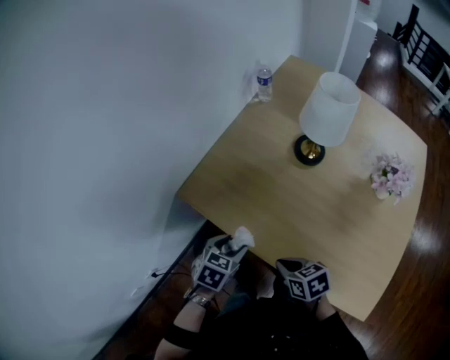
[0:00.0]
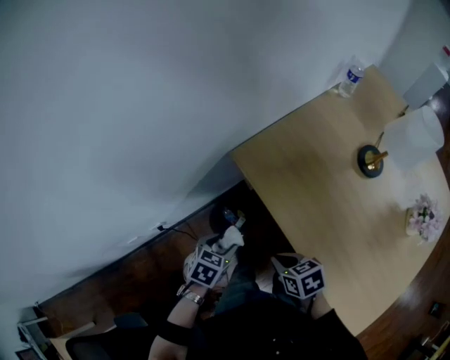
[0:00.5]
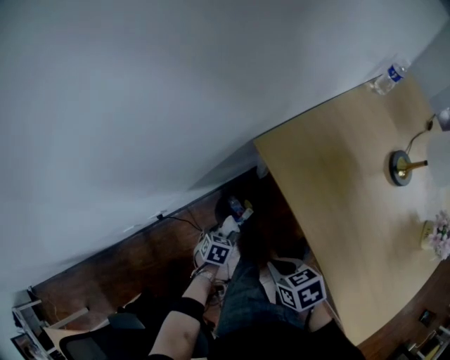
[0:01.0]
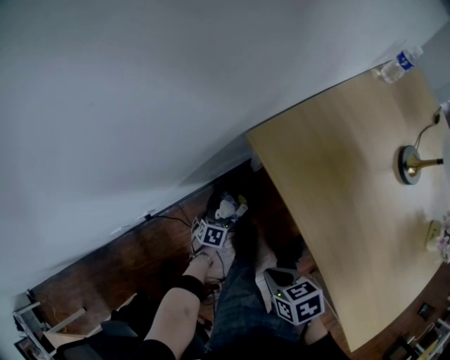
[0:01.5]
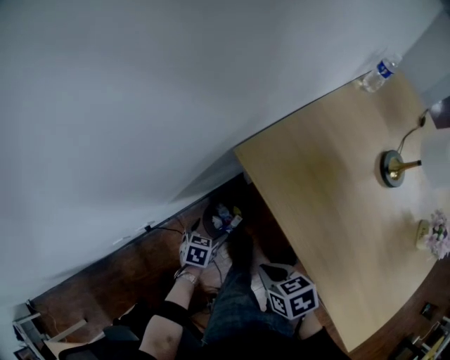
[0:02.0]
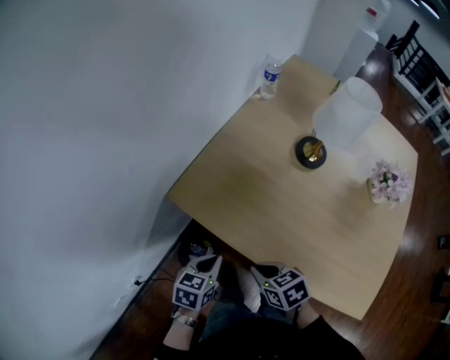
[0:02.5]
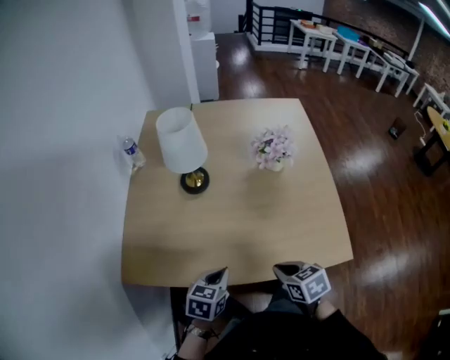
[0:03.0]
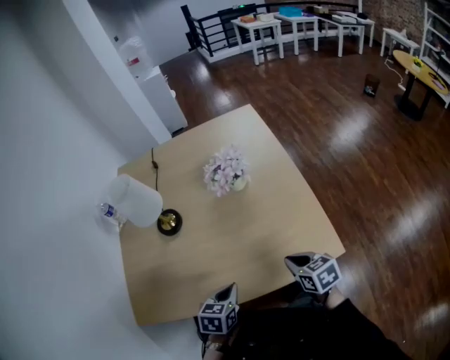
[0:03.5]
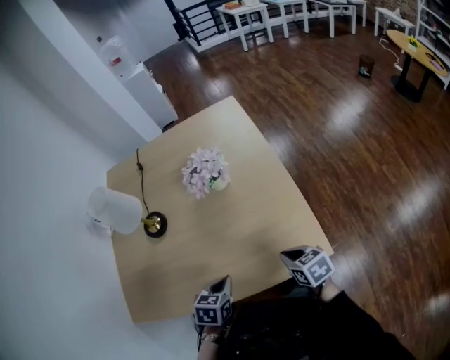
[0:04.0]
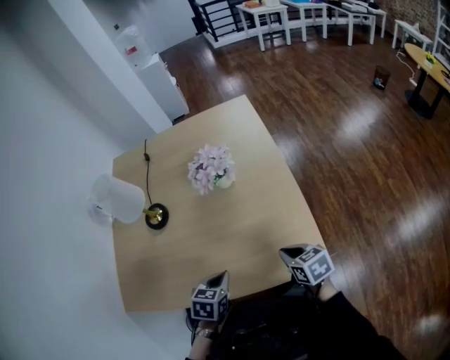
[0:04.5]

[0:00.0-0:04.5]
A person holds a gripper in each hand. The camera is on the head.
0:00.0 to 0:02.0: The left gripper heads downward, covering approximately 25 cm, turns by approximately 40 degrees, and opens its fingers. Meanwhile the right gripper ends up about 20 cm from where it was, and rotates about 20 degrees.
0:02.0 to 0:04.5: The pair of grippers is taken roughly 60 cm. The left gripper rotates around the line of its fingers by some 60 degrees, clockwise from behind, and closes up. The right gripper turns by about 70 degrees.

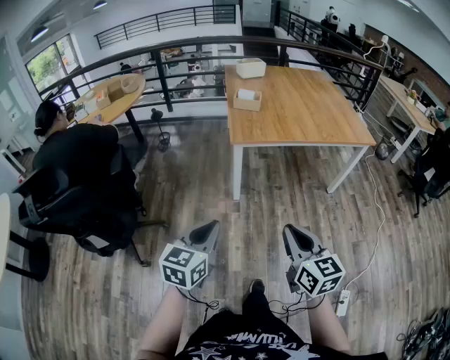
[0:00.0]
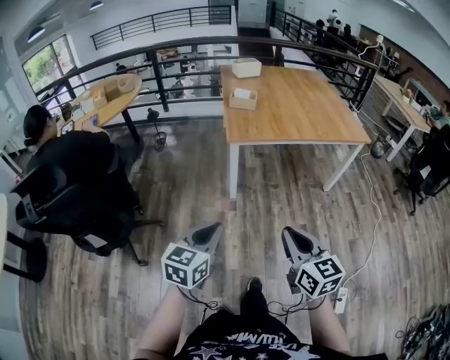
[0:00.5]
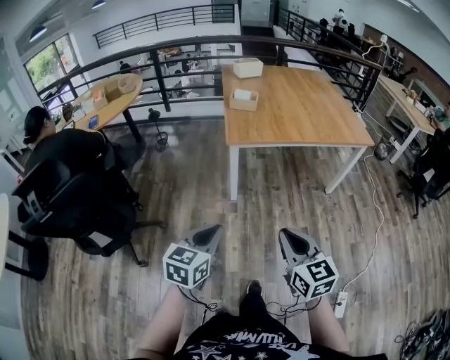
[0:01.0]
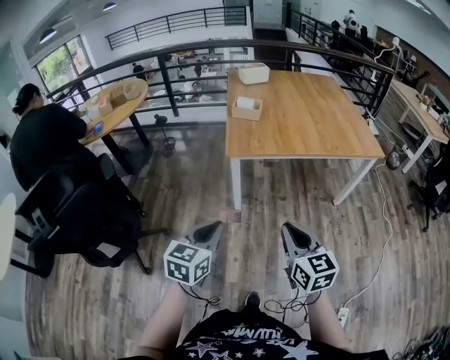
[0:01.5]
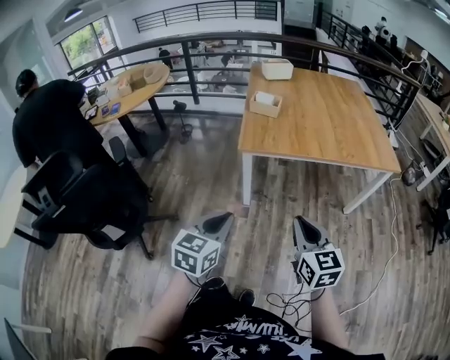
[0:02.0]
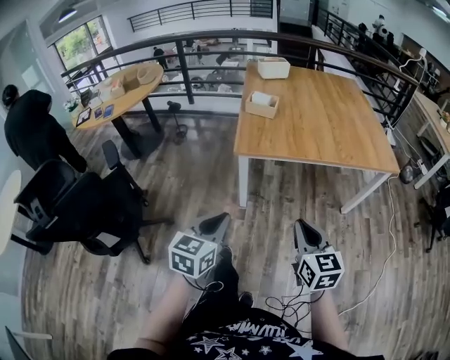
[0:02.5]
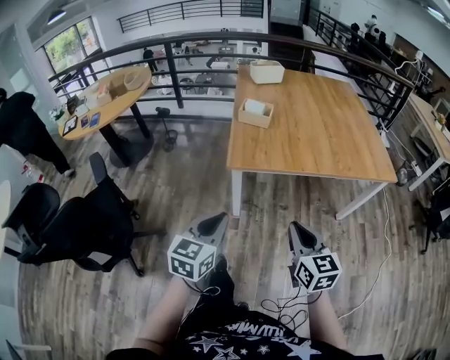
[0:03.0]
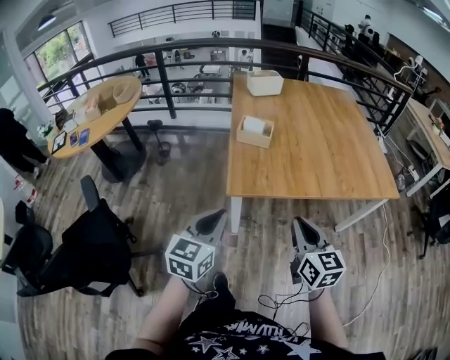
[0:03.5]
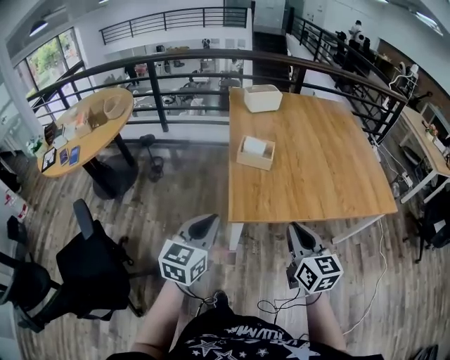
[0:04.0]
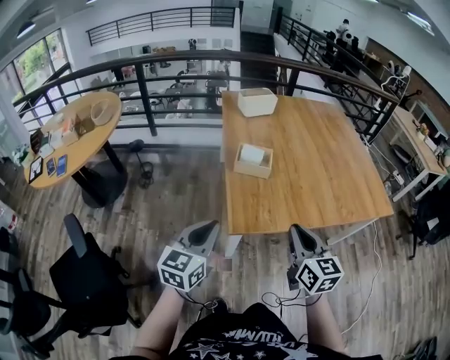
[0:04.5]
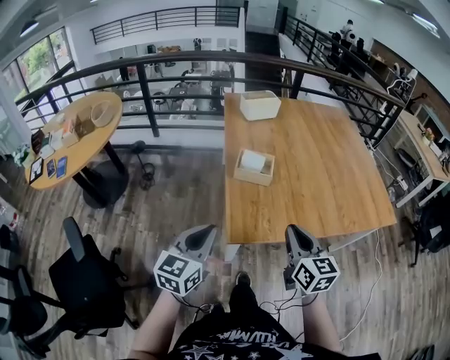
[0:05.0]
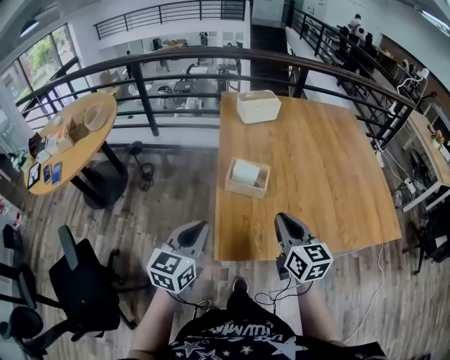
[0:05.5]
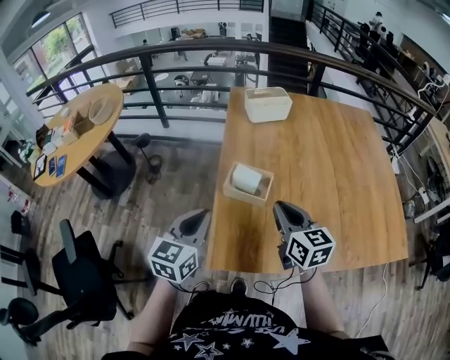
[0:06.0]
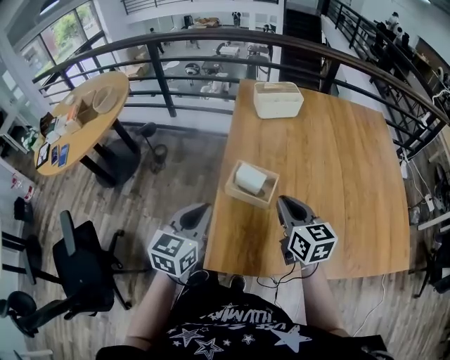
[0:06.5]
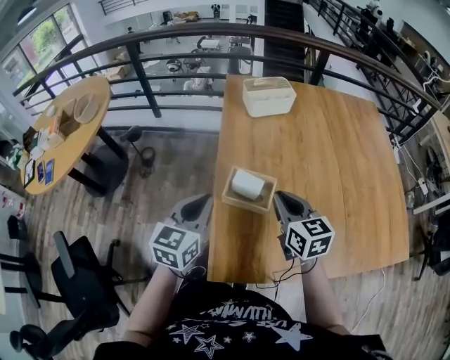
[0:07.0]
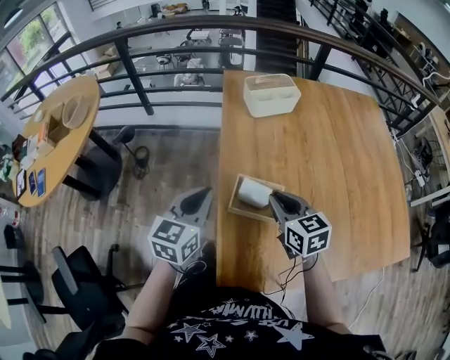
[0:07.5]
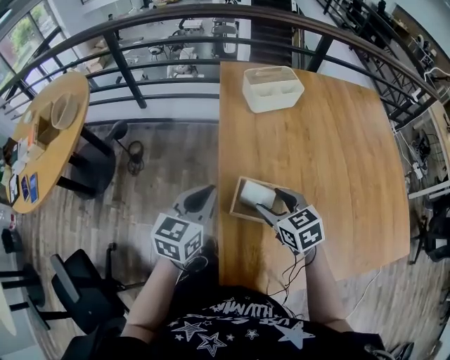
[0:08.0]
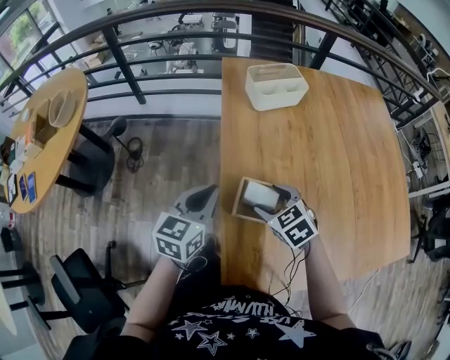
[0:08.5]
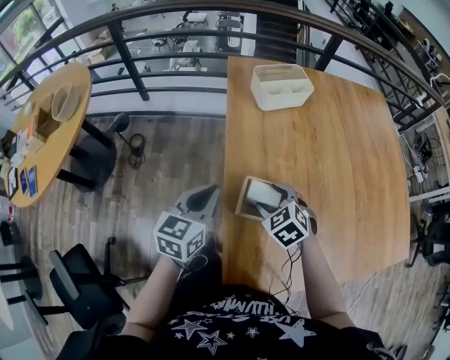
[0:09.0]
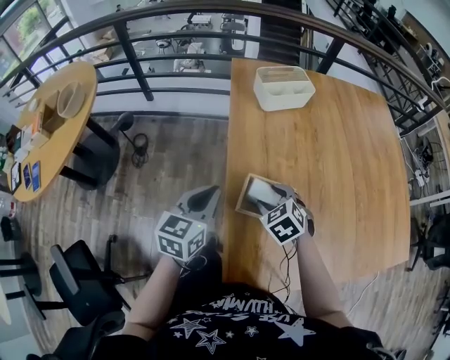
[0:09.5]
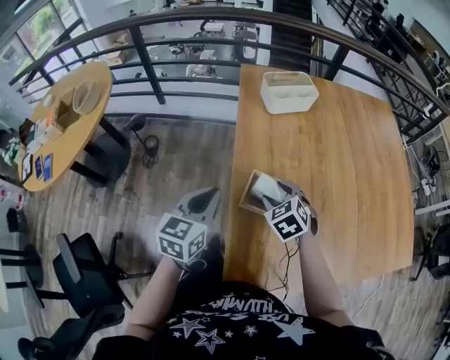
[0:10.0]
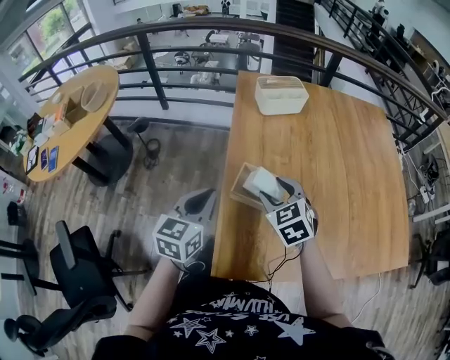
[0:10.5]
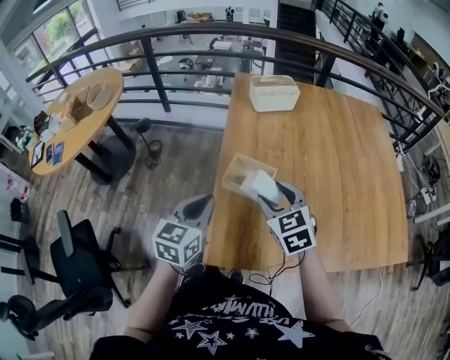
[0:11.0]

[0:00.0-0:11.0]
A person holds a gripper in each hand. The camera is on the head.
0:00.0 to 0:02.0: Both grippers travel together forward and to the right, approximately 20 cm.
0:02.0 to 0:03.5: The two grippers go about 25 cm forward.
0:03.5 to 0:05.5: The two grippers go roughly 30 cm forward.
0:05.5 to 0:07.5: The two grippers go approximately 25 cm forward.
0:07.5 to 0:09.0: The left gripper moves about 5 cm, while the right gripper moves downward, roughly 10 cm, turns by roughly 40 degrees, and opens its fingers.
0:09.0 to 0:11.0: The left gripper travels backward by some 20 cm. The right gripper moves backward, upward and to the right, some 20 cm, and rotates approximately 20 degrees.

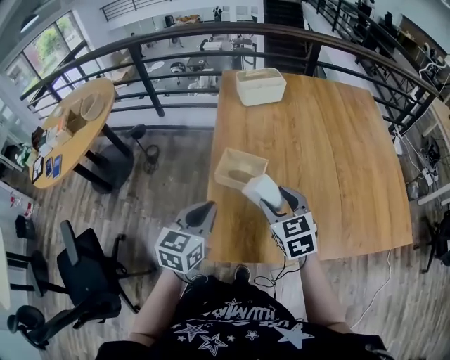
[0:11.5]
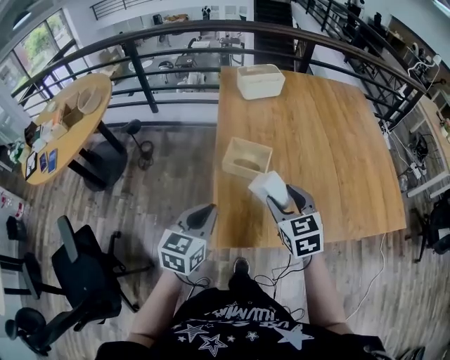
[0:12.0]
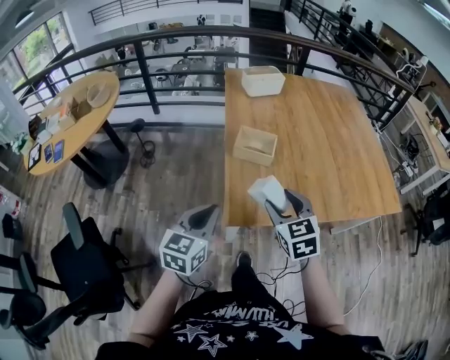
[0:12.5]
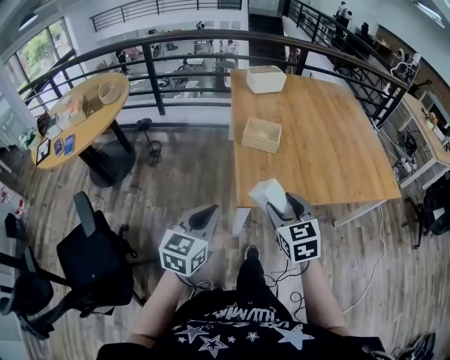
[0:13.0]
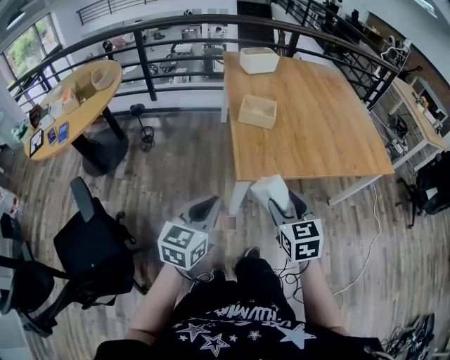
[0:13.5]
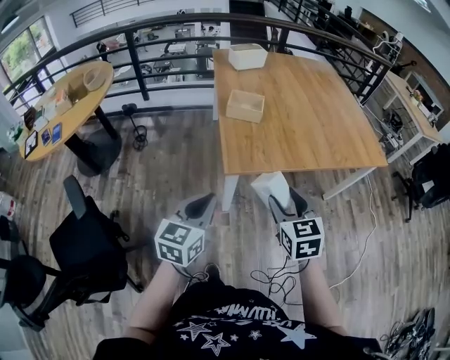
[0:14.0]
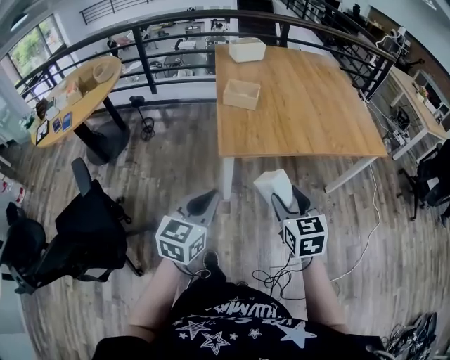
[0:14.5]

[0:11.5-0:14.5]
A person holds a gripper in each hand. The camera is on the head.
0:11.5 to 0:13.0: The right gripper shifts approximately 30 cm backward. Meanwhile the left gripper goes approximately 35 cm backward and to the left.
0:13.0 to 0:14.5: The two grippers go roughly 20 cm backward and to the right.

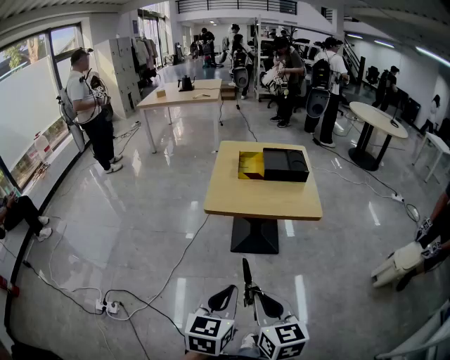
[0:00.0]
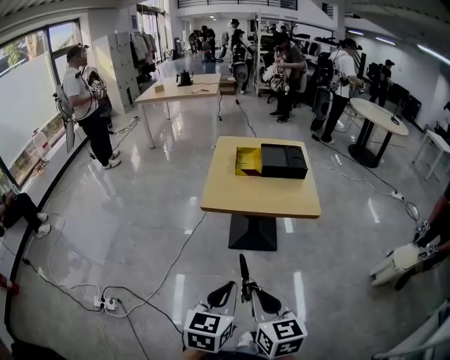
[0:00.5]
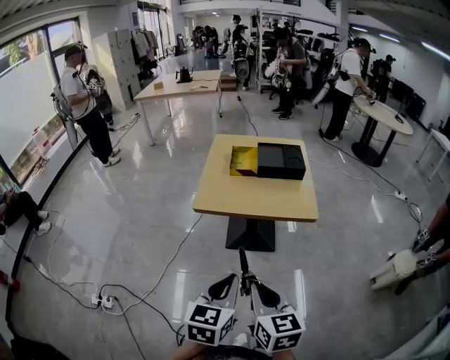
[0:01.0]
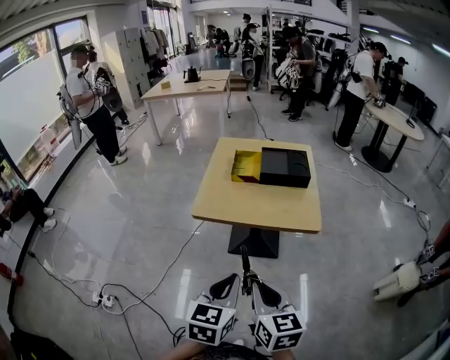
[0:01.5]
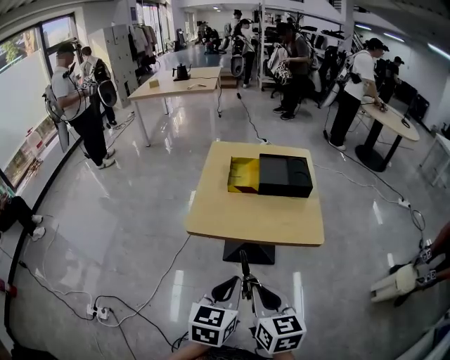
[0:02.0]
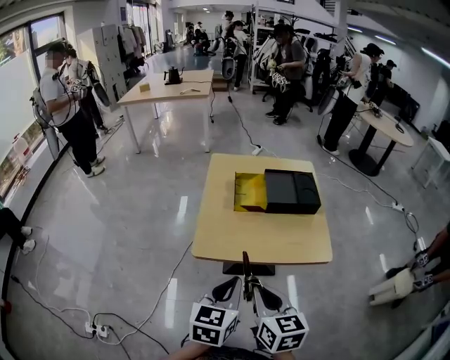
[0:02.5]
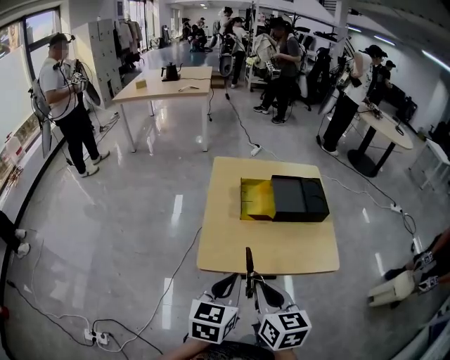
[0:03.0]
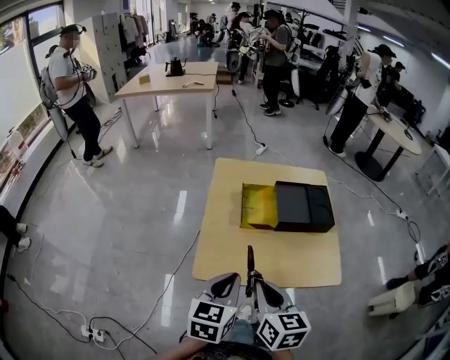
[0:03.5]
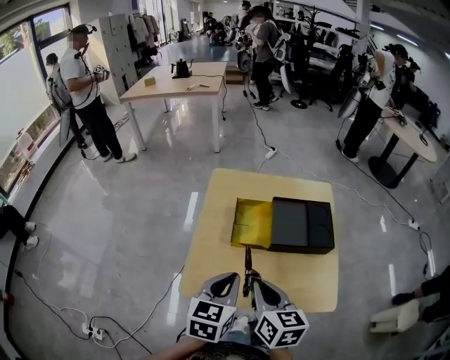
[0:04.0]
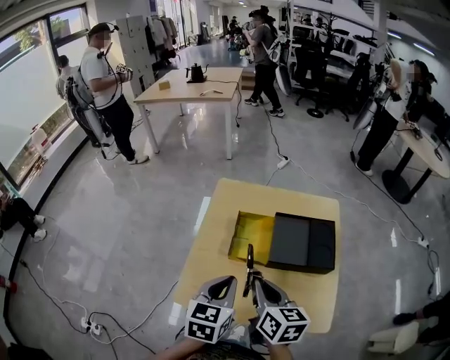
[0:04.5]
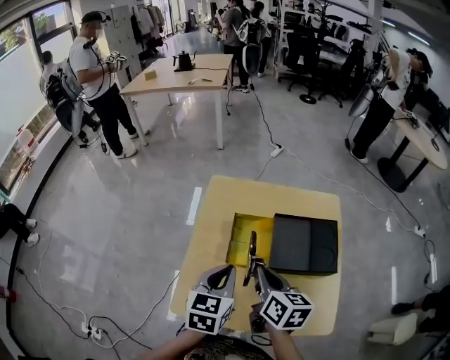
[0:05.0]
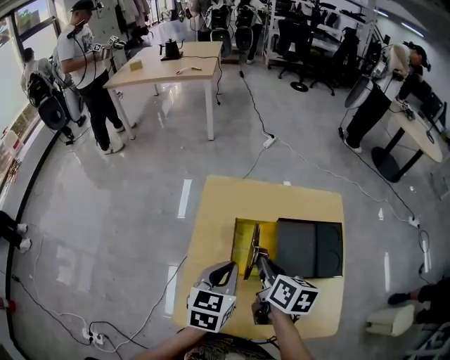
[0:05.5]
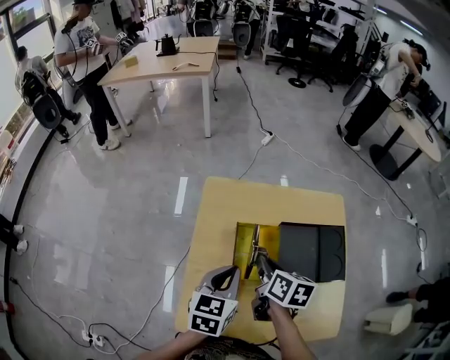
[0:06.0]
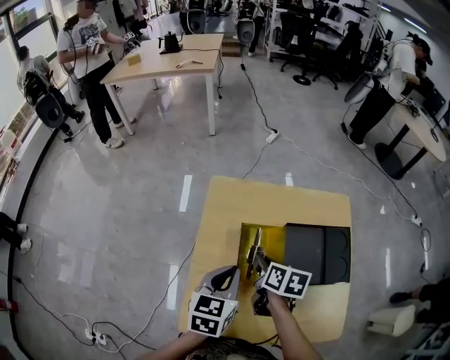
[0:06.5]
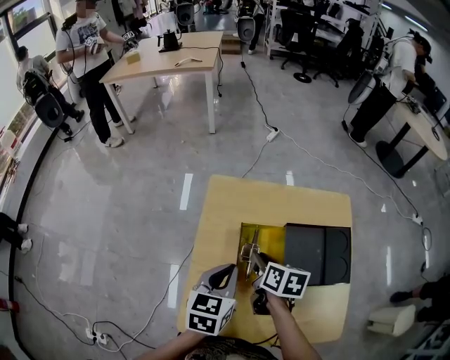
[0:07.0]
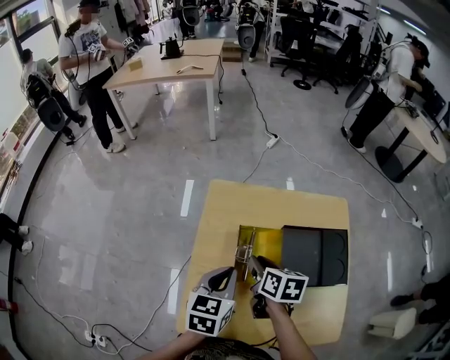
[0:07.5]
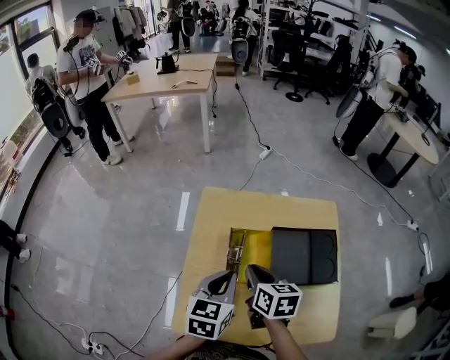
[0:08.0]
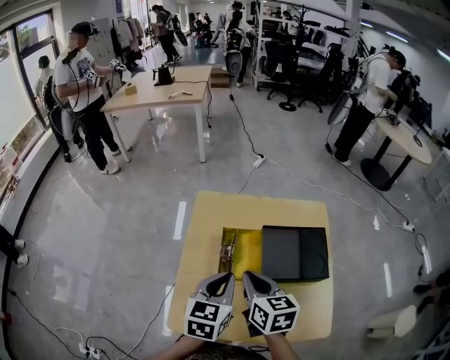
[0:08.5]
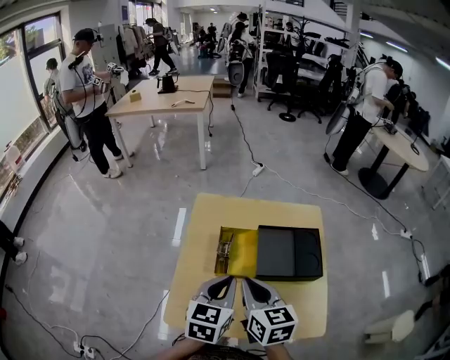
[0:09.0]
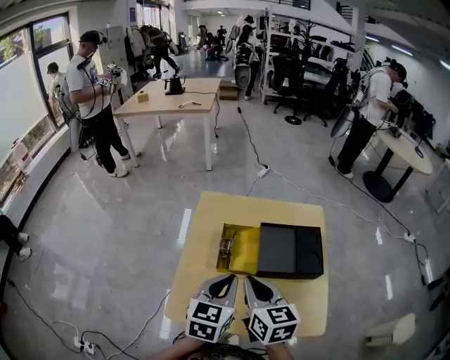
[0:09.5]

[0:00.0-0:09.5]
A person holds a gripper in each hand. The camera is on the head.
0:00.0 to 0:02.0: The grippers both shift forward by approximately 35 cm.
0:02.0 to 0:04.0: Both grippers are carried forward, about 50 cm.
0:04.0 to 0:05.5: Both grippers move forward, roughly 30 cm.
0:05.5 to 0:07.5: The right gripper is displaced forward and downward by some 10 cm. The left gripper travels forward by about 5 cm.
0:07.5 to 0:09.5: The left gripper heads backward and to the right, covering approximately 30 cm. Meanwhile the right gripper shifts roughly 35 cm backward and upward, rotates roughly 30 degrees, and closes its fingers.
